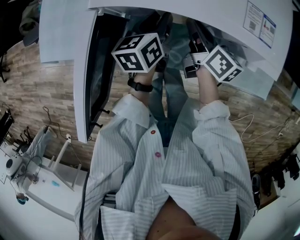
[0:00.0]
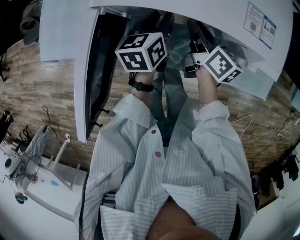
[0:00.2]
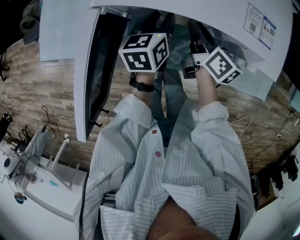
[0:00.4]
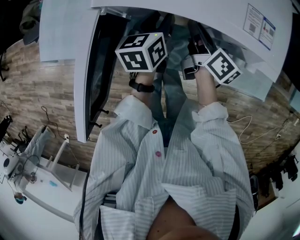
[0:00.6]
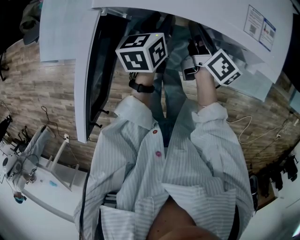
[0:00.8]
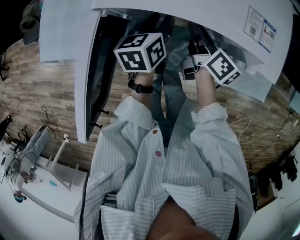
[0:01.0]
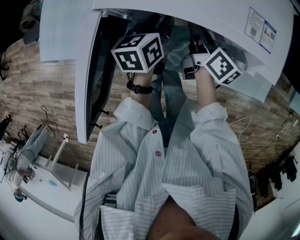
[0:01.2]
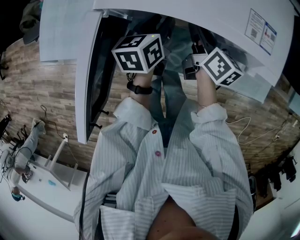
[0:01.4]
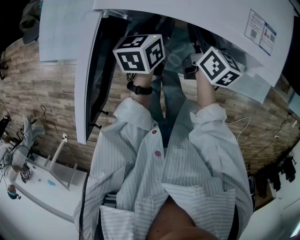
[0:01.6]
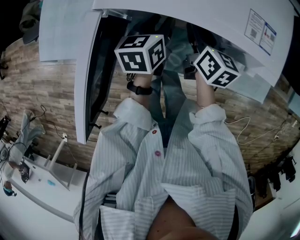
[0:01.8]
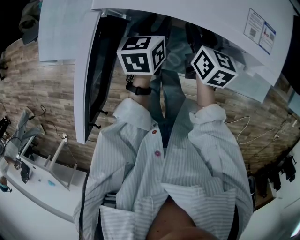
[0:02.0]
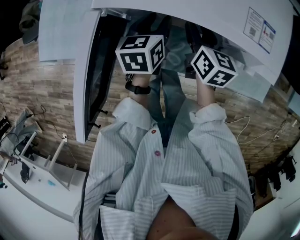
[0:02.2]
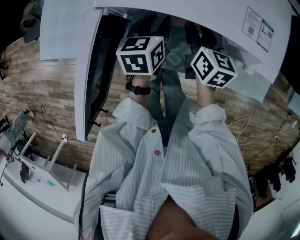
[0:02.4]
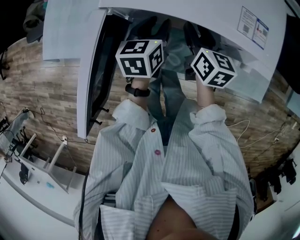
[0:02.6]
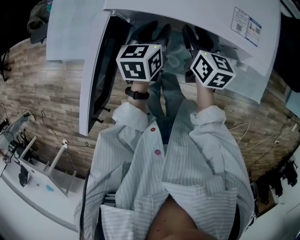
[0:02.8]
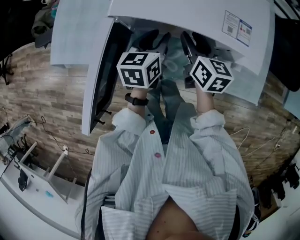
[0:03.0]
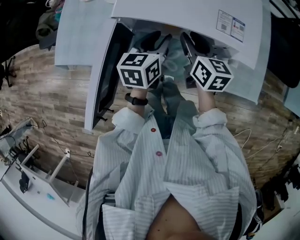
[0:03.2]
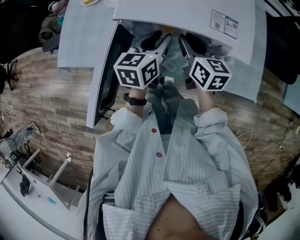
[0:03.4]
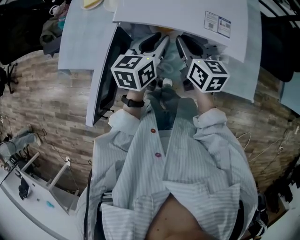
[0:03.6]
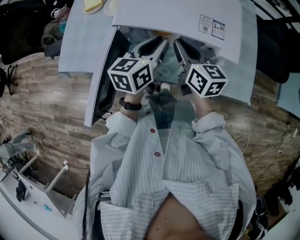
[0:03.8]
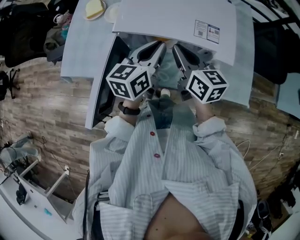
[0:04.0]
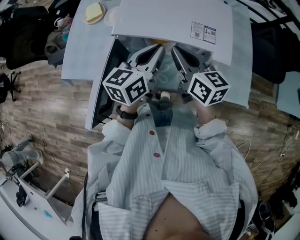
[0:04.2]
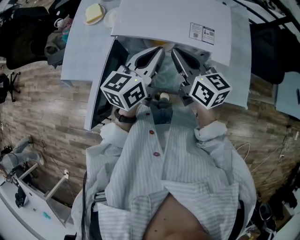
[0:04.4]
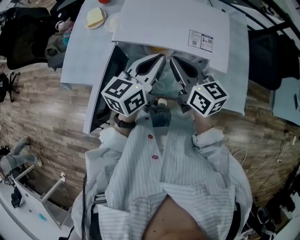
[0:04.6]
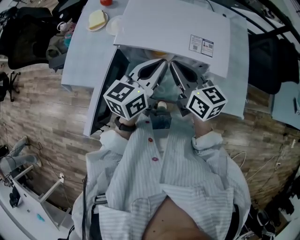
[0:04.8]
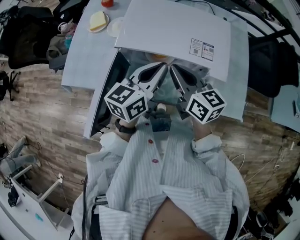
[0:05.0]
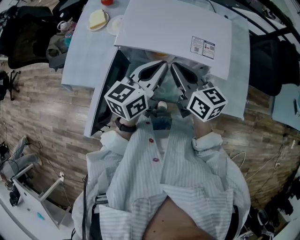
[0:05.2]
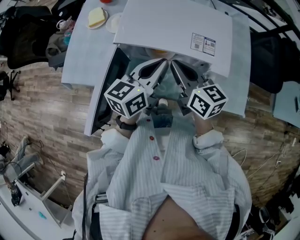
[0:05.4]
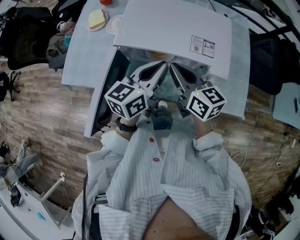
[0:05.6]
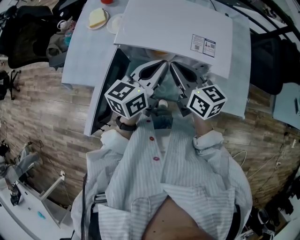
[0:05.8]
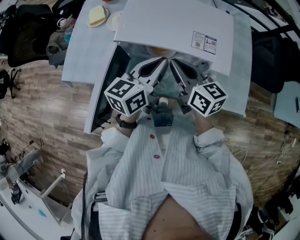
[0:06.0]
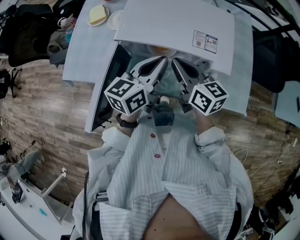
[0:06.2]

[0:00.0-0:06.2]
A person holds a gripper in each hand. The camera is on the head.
0.0 to 1.6 s: The grippers move only a little.
1.6 to 3.2 s: The grippers both shift upward by about 10 cm.
3.2 to 4.6 s: The left gripper moves upward, roughly 15 cm, turns by about 20 degrees, and closes, while the right gripper is displaced upward and backward by approximately 15 cm, and closes its fingers.
4.6 to 6.2 s: The grippers move only a little.

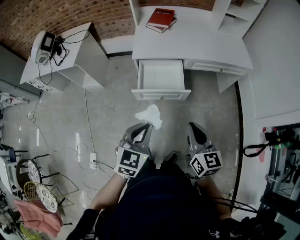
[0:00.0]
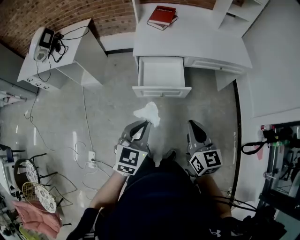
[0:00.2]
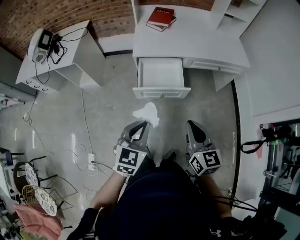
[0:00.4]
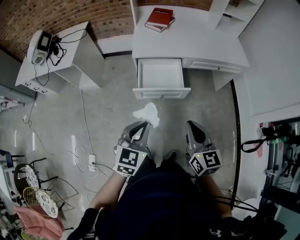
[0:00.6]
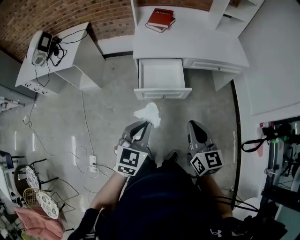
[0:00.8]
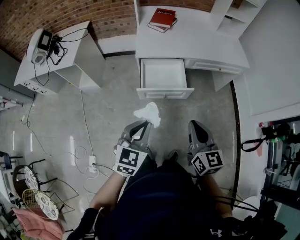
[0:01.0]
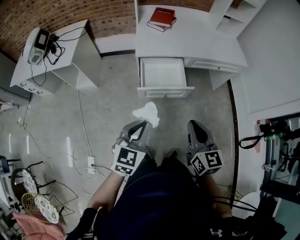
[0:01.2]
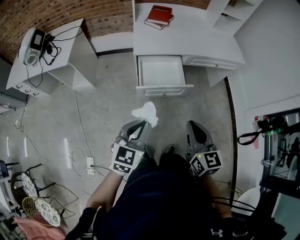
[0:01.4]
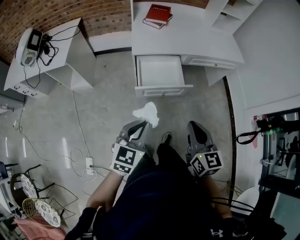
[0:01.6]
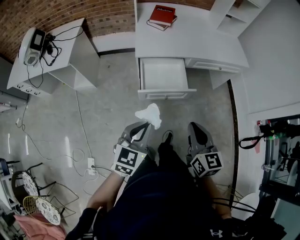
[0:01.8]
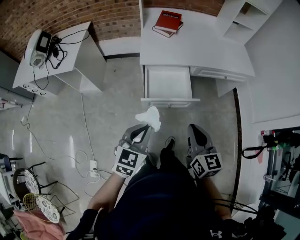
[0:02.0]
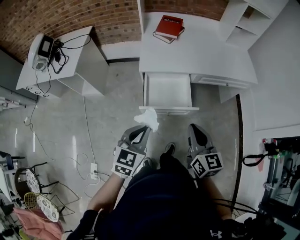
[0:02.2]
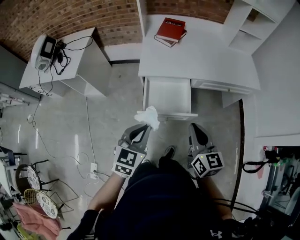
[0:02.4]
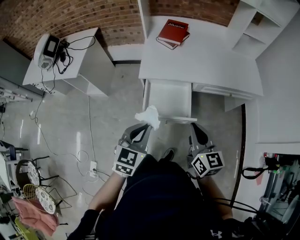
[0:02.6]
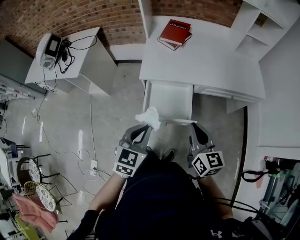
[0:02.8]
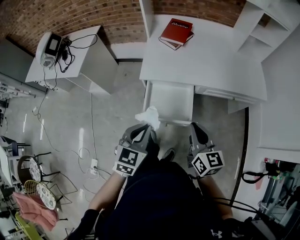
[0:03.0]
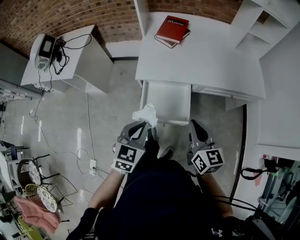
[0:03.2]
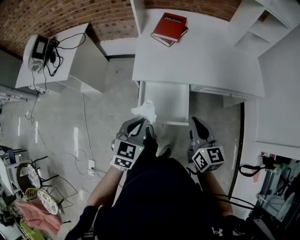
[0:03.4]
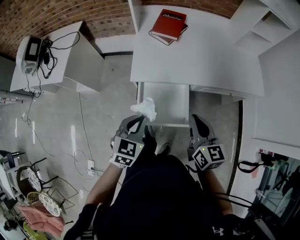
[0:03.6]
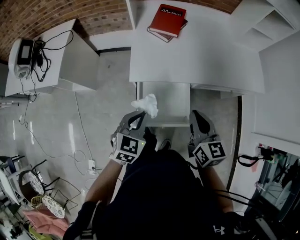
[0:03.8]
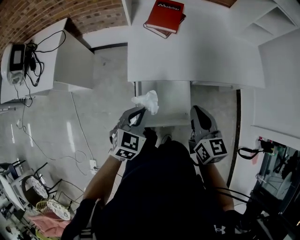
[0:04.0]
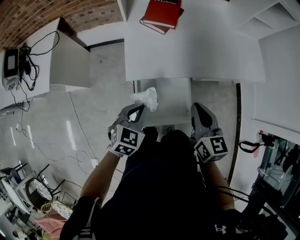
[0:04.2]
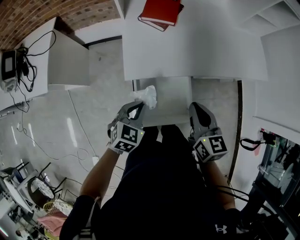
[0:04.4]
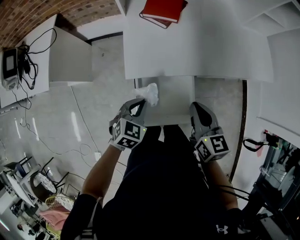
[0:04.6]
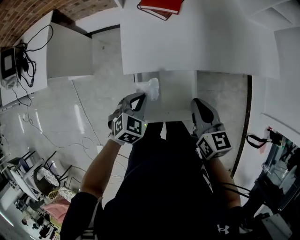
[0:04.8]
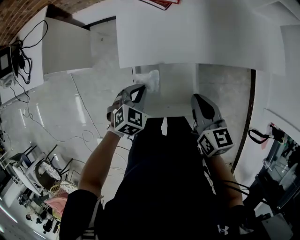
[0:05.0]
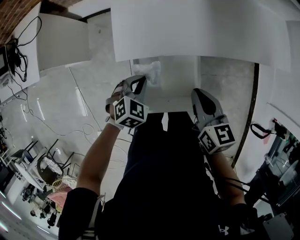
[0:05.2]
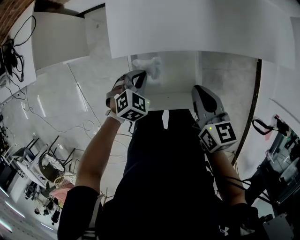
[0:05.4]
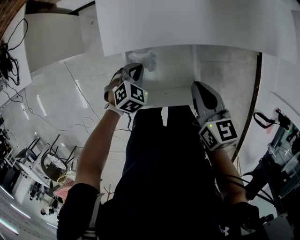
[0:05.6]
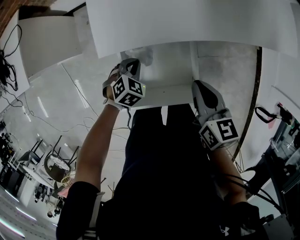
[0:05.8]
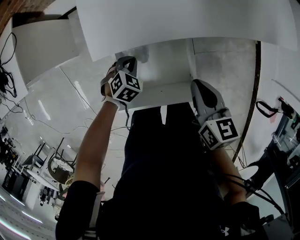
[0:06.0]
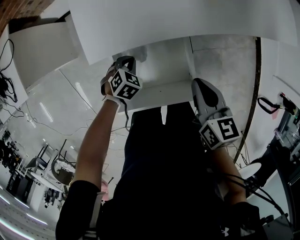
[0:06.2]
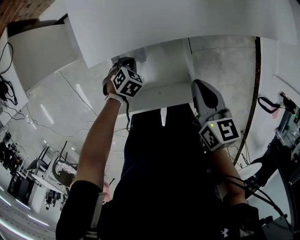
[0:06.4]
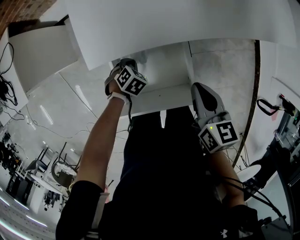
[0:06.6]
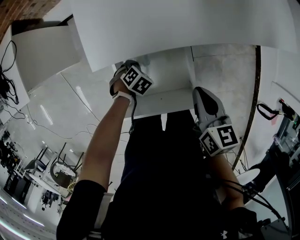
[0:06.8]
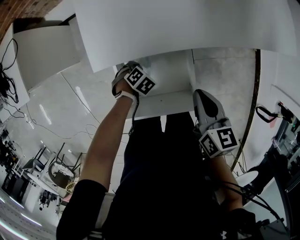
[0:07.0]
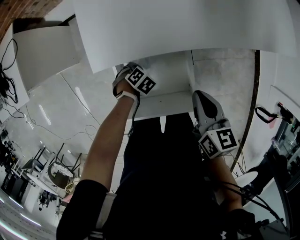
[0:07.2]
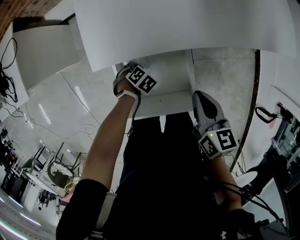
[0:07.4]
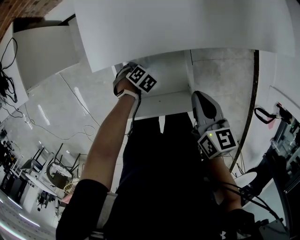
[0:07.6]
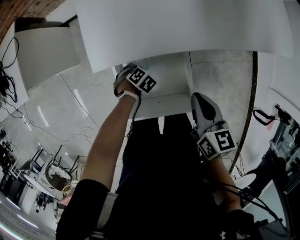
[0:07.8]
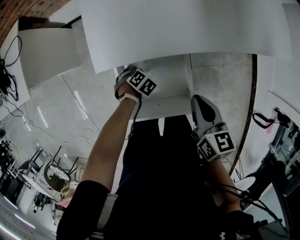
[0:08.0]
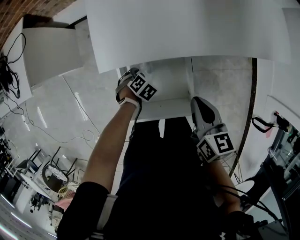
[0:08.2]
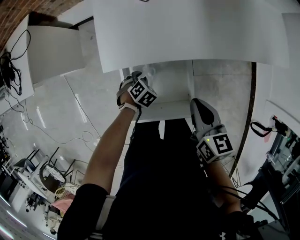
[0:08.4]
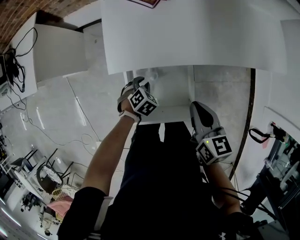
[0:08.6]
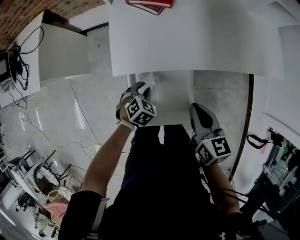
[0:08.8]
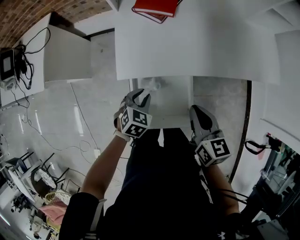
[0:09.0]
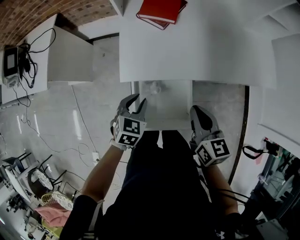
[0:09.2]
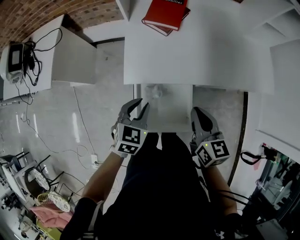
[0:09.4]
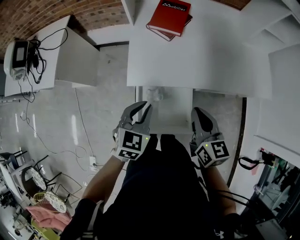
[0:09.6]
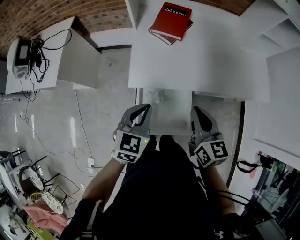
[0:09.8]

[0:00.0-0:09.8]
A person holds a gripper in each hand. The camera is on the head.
0.0 to 1.4 s: Both grippers move to the left, roughly 10 cm.
1.4 to 2.8 s: Both grippers move forward, some 20 cm.
2.8 to 4.2 s: The right gripper is displaced forward by some 15 cm. Meanwhile the left gripper heads forward and downward, covering approximately 20 cm.
4.2 to 5.6 s: The grippers both shift downward by roughly 15 cm. The left gripper changes its angle by roughly 30 degrees.
5.6 to 7.0 s: The left gripper goes about 15 cm downward, and swivels roughly 20 degrees.
7.0 to 8.4 s: The left gripper opens.
8.4 to 9.8 s: The right gripper heads upward, covering about 15 cm, and turns by roughly 20 degrees. The left gripper goes some 35 cm upward, tilts its fingers approximately 50 degrees upward, and closes.

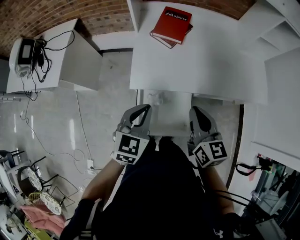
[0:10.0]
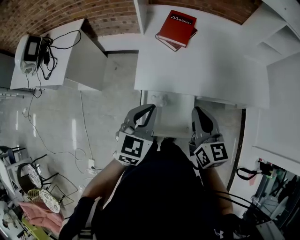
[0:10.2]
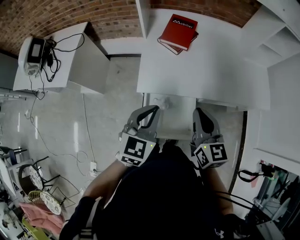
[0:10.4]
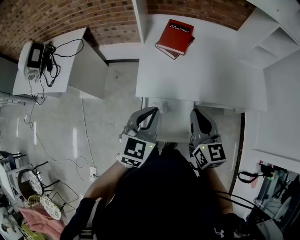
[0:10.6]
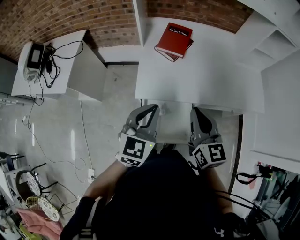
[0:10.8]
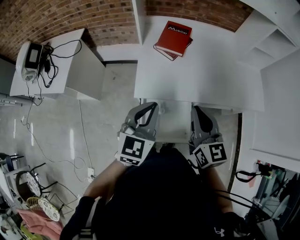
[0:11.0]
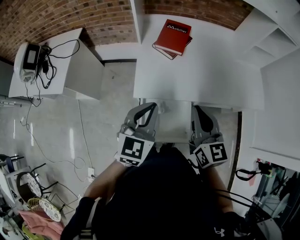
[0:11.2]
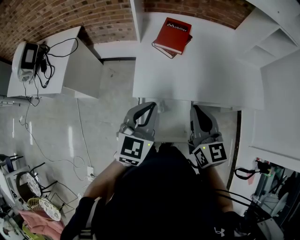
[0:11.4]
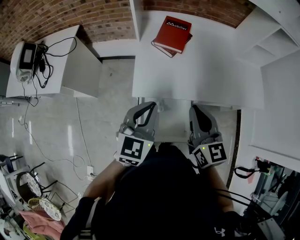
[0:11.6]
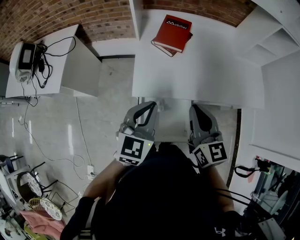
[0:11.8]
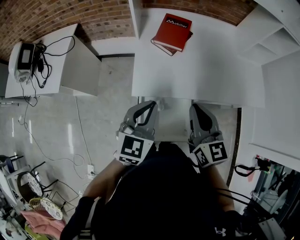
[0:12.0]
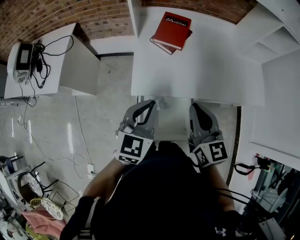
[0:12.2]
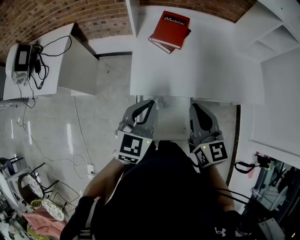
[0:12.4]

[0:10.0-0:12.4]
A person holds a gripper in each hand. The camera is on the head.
10.0 to 11.2 s: Both grippers move upward, some 5 cm.
11.2 to 12.4 s: The grippers move only a little.

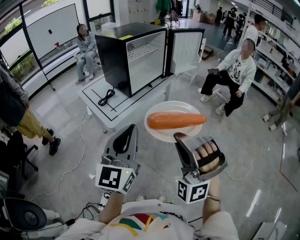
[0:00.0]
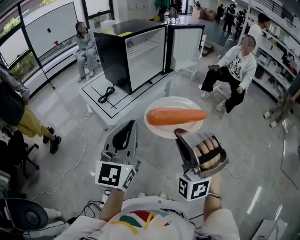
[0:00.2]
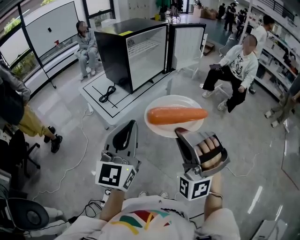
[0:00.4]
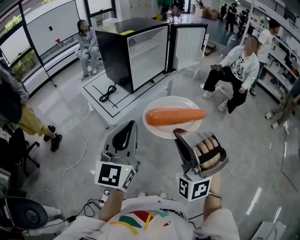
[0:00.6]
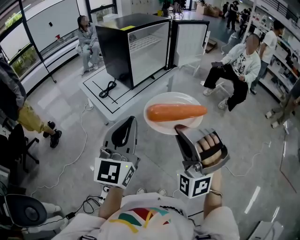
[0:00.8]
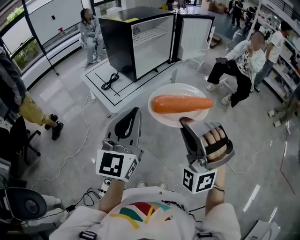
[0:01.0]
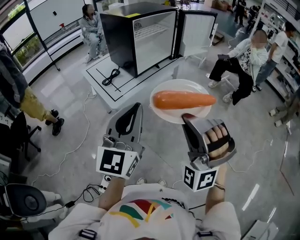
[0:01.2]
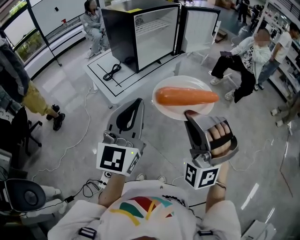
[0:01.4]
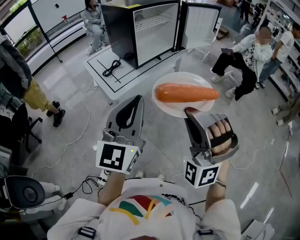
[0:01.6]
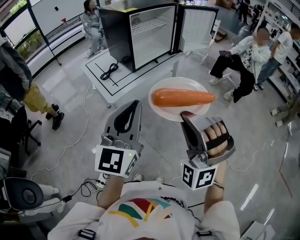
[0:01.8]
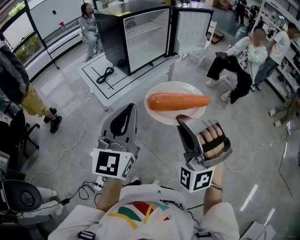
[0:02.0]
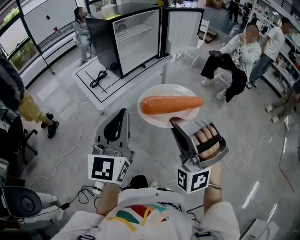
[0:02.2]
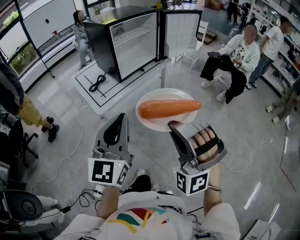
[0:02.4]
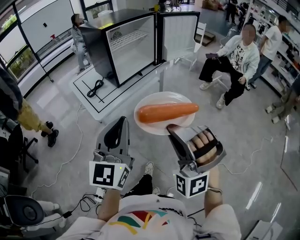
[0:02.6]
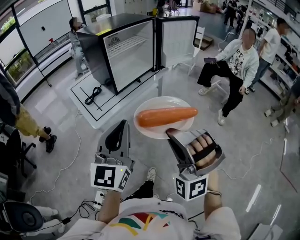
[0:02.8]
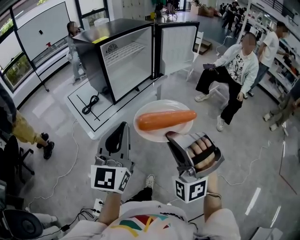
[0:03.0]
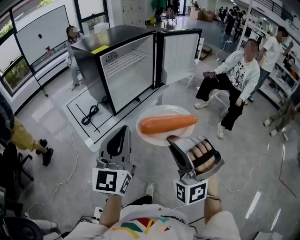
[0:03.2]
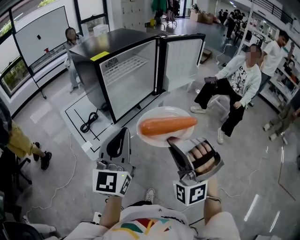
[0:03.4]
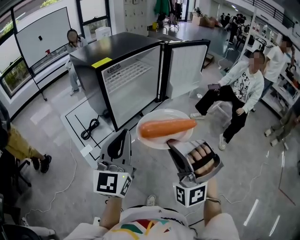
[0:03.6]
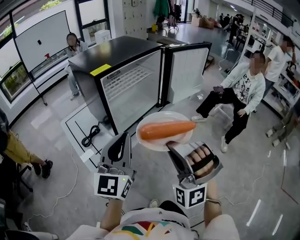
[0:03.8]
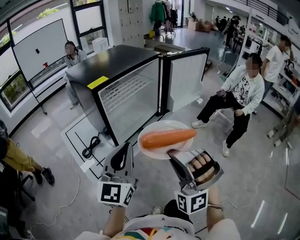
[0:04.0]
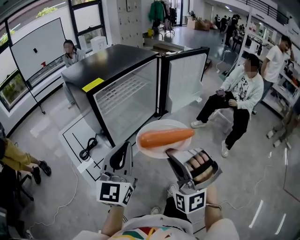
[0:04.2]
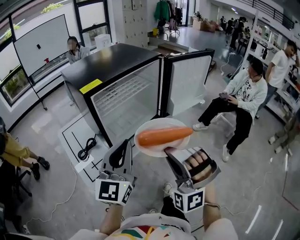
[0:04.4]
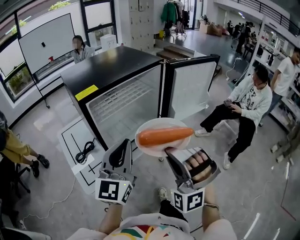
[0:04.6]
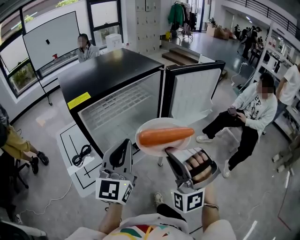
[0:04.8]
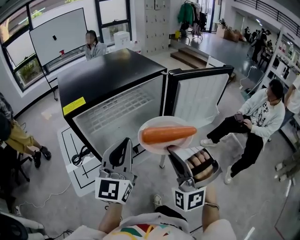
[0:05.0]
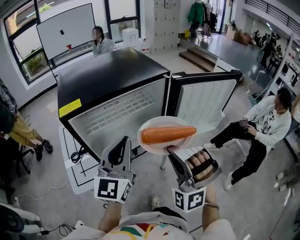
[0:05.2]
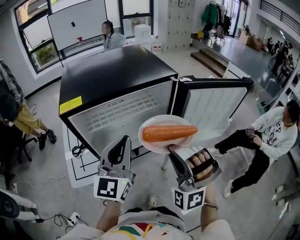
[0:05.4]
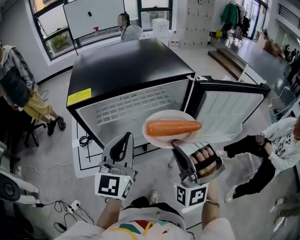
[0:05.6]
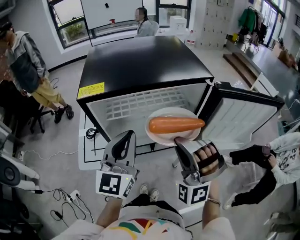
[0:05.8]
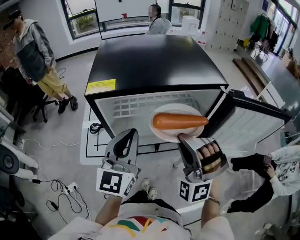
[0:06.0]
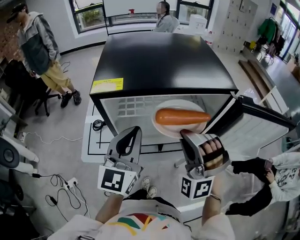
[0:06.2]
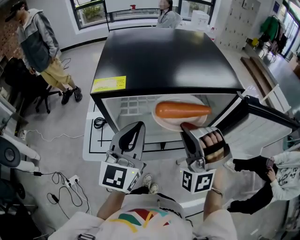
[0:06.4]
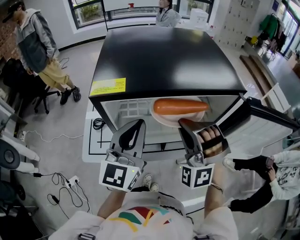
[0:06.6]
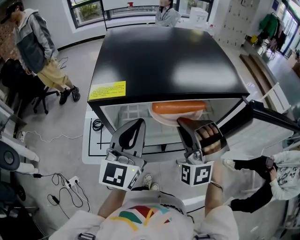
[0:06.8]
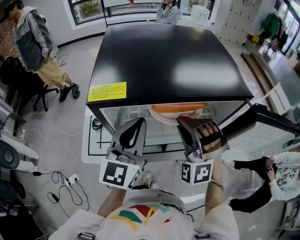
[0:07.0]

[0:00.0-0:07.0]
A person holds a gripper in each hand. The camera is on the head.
0.0 to 1.4 s: The grippers stay close to where they were, moving slightly.
1.4 to 2.8 s: The right gripper shifts roughly 10 cm to the right and forward. The left gripper moves forward and to the right, roughly 10 cm.
2.8 to 4.2 s: The two grippers go about 30 cm forward.
4.2 to 5.6 s: The left gripper moves roughly 20 cm, and rotates approximately 30 degrees; the right gripper shifts by approximately 25 cm, and changes its angle by about 30 degrees.
5.6 to 7.0 s: The right gripper goes about 20 cm forward and to the left. The left gripper shifts some 10 cm forward and to the left.
